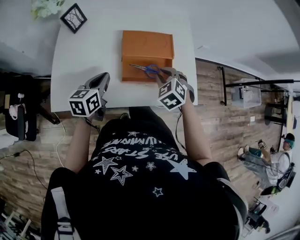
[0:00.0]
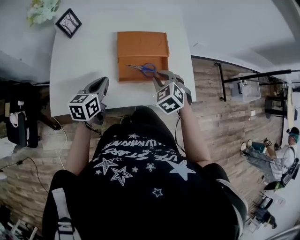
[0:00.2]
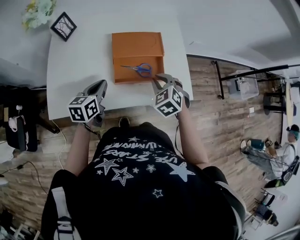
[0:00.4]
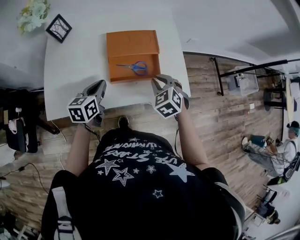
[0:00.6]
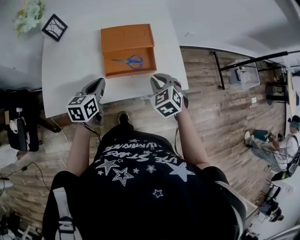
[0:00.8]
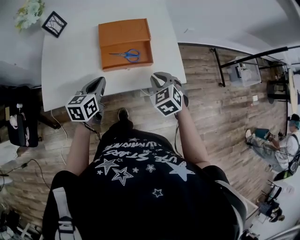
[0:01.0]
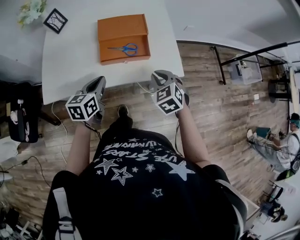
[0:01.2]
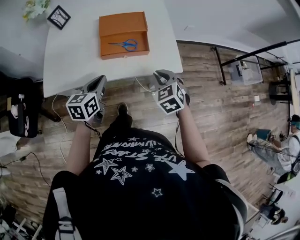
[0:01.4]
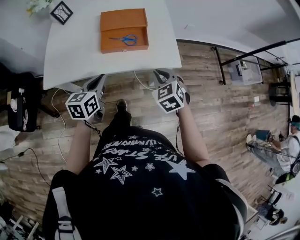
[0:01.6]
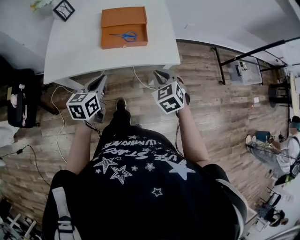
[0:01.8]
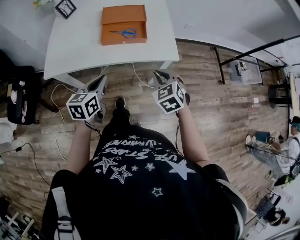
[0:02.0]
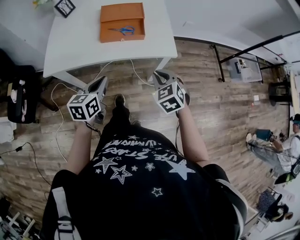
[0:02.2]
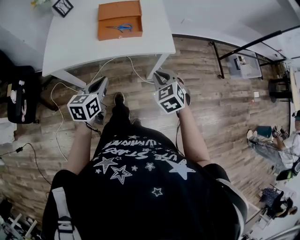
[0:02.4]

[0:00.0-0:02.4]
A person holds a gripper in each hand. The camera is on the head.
0:00.0 to 0:01.2: The right gripper shifts some 20 cm backward and to the right. The left gripper is displaced to the right and backward by some 15 cm.
0:01.2 to 0:02.4: The grippers both shift backward by roughly 20 cm.

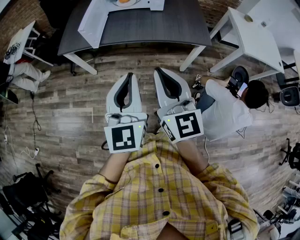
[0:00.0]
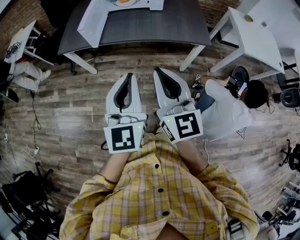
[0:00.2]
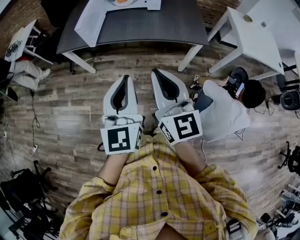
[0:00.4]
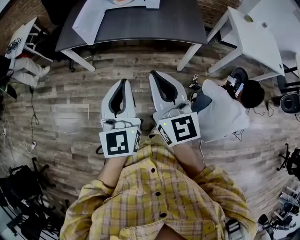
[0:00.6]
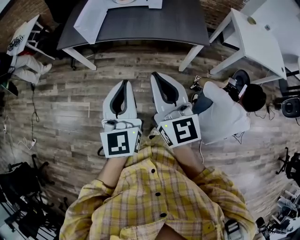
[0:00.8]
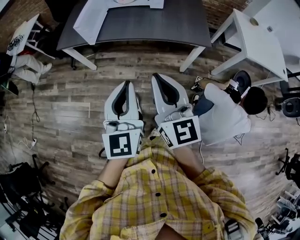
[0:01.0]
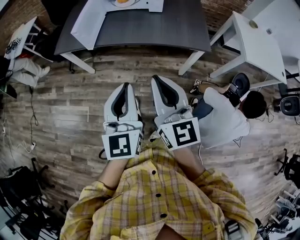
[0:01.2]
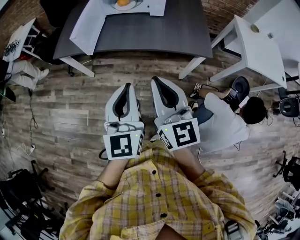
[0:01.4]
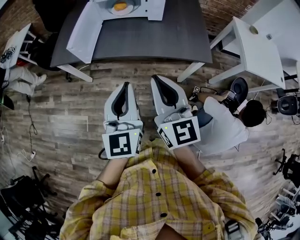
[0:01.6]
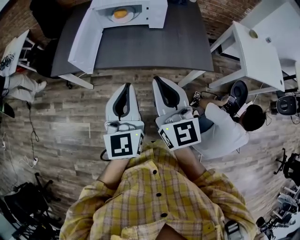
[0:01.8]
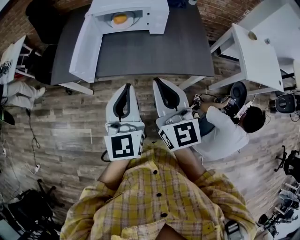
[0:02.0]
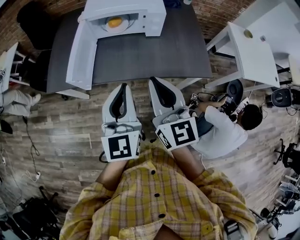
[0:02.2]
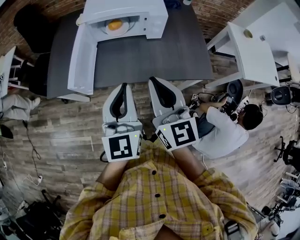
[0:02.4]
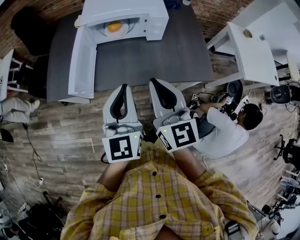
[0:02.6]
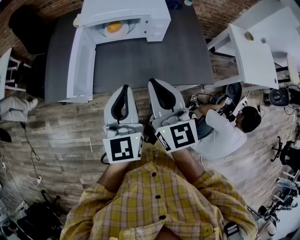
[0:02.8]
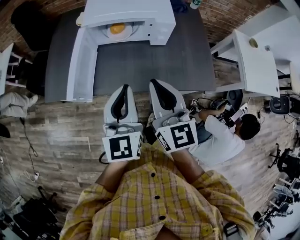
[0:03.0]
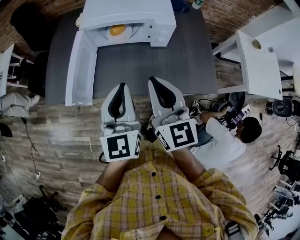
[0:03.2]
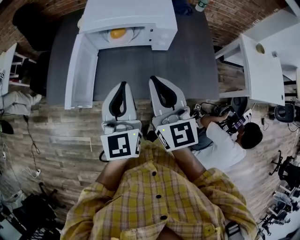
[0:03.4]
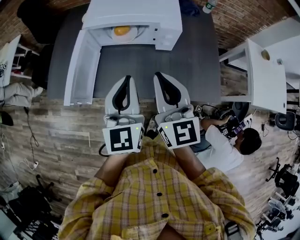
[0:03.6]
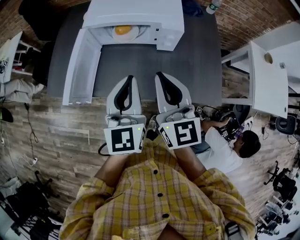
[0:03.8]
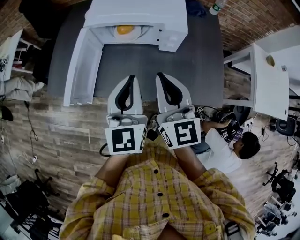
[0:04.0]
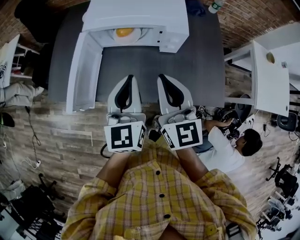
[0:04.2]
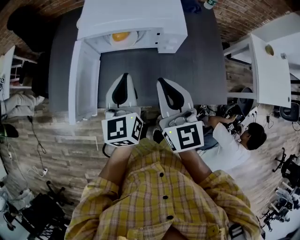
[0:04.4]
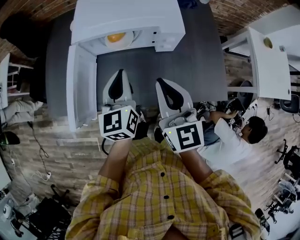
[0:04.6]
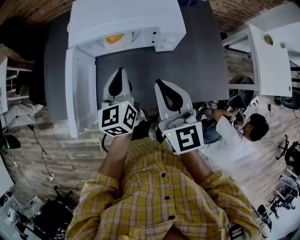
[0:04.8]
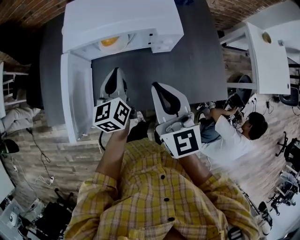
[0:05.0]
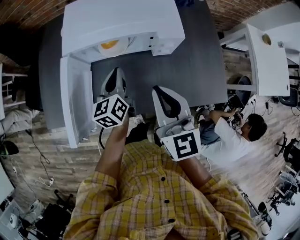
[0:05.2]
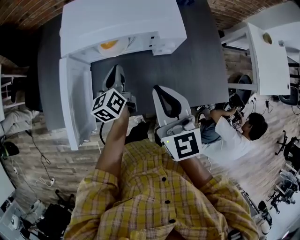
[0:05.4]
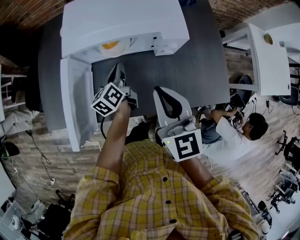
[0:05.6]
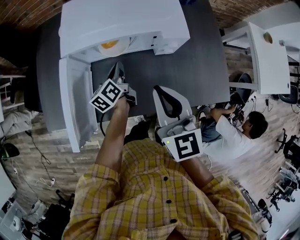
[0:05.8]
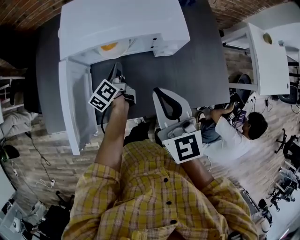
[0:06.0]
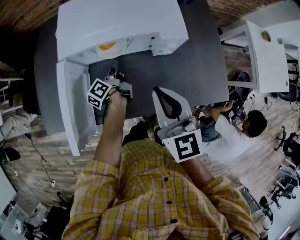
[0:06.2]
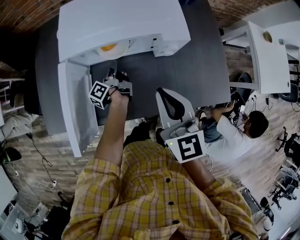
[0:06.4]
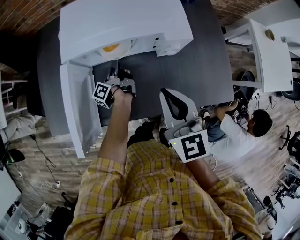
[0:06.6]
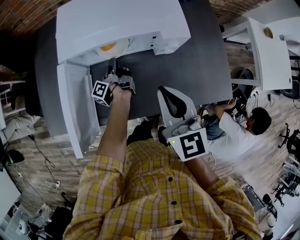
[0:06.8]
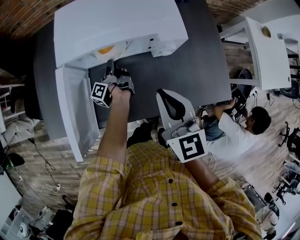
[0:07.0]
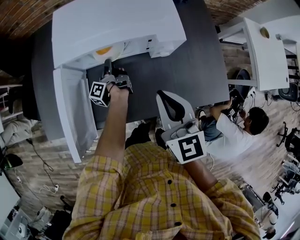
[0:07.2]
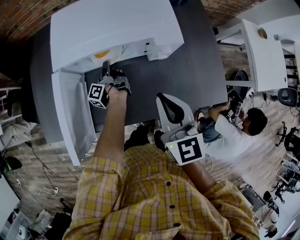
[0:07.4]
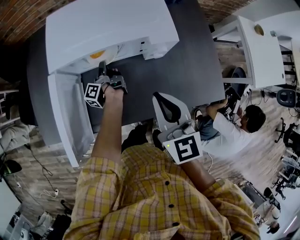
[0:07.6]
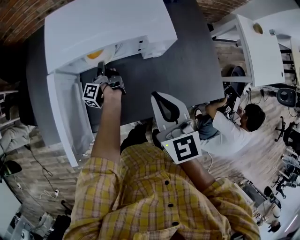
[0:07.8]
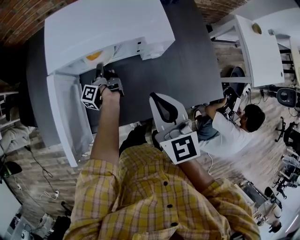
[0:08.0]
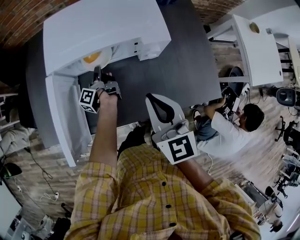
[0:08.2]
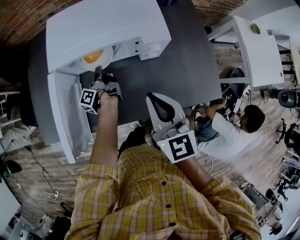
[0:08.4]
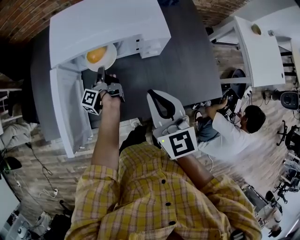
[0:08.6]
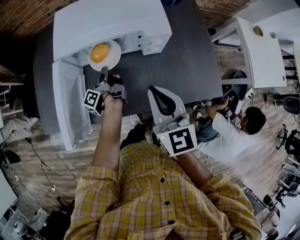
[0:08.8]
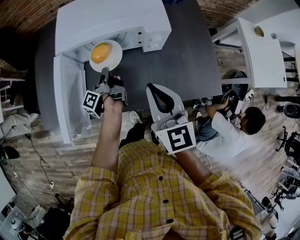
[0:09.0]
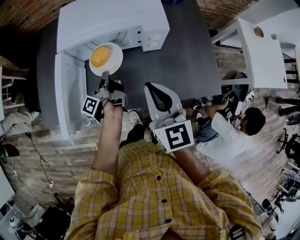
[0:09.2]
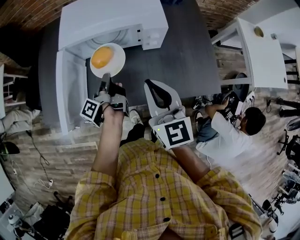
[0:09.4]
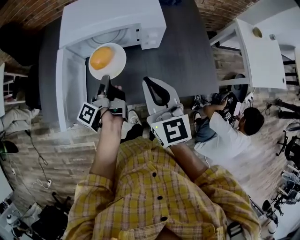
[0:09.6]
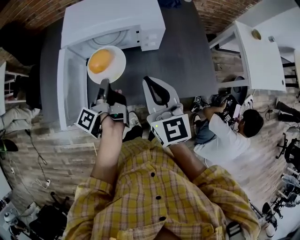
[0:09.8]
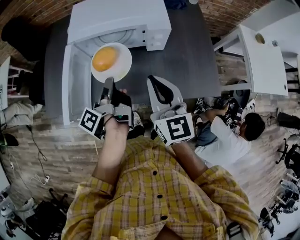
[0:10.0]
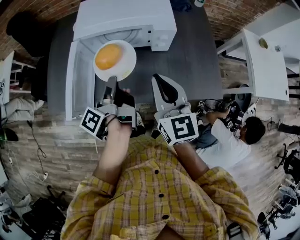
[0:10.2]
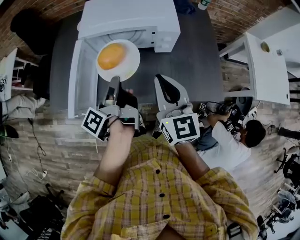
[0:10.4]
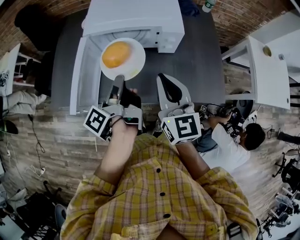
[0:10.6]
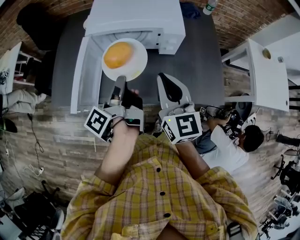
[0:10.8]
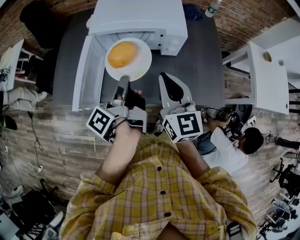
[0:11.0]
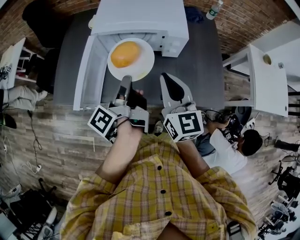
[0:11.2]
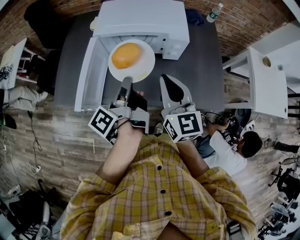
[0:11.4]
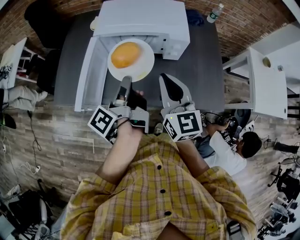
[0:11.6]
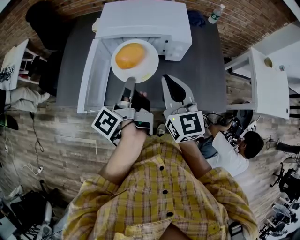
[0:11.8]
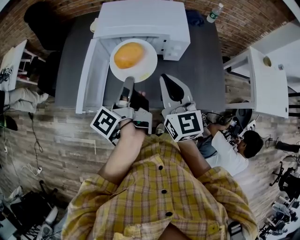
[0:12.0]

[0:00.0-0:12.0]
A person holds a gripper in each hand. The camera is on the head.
0:00.0 to 0:01.6: The right gripper travels forward and to the right by some 15 cm. Meanwhile the left gripper shifts roughly 10 cm forward.
0:01.6 to 0:03.0: The grippers both shift forward by some 25 cm.
0:03.0 to 0:04.4: The two grippers go approximately 15 cm forward.
0:04.4 to 0:06.0: The right gripper moves forward, approximately 5 cm, while the left gripper travels downward and forward by roughly 25 cm, and rolls counterclockwise, seen from behind, by approximately 40 degrees.
0:06.0 to 0:07.6: The left gripper heads downward and forward, covering some 10 cm, and rotates roughly 40 degrees.
0:07.6 to 0:09.0: The left gripper is displaced backward and upward by roughly 15 cm.
0:09.0 to 0:10.4: The right gripper changes place by approximately 5 cm; the left gripper heads upward and backward, covering about 25 cm.
0:10.4 to 0:12.0: The grippers stay close to where they were, moving slightly.

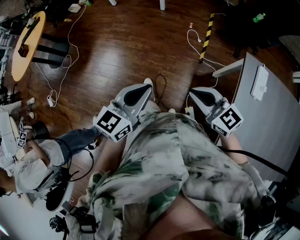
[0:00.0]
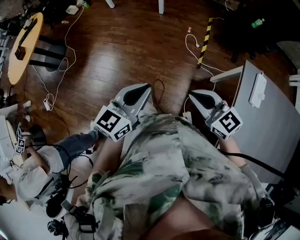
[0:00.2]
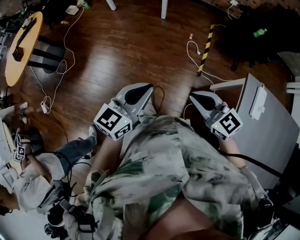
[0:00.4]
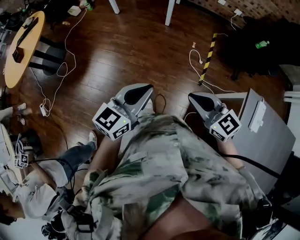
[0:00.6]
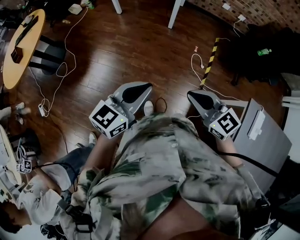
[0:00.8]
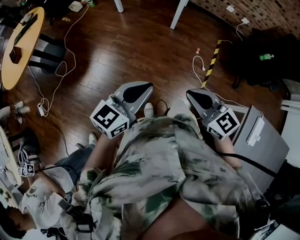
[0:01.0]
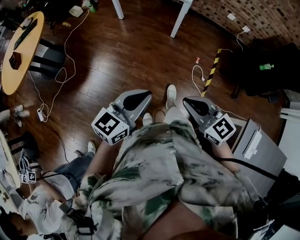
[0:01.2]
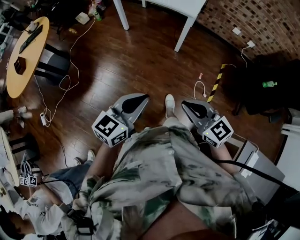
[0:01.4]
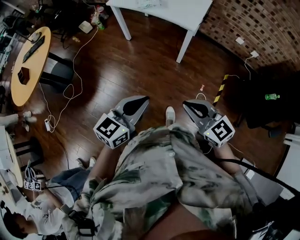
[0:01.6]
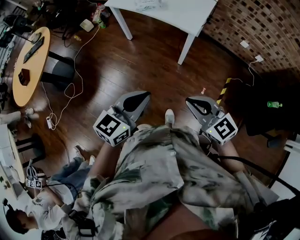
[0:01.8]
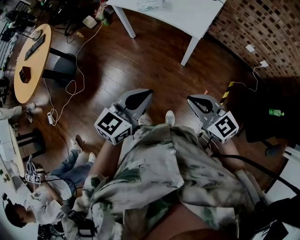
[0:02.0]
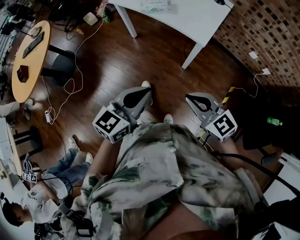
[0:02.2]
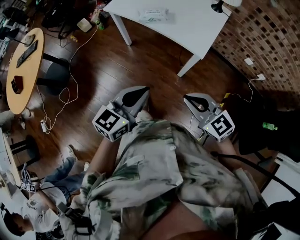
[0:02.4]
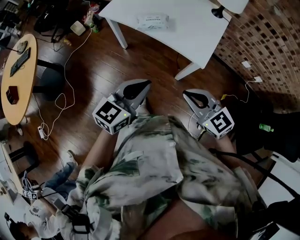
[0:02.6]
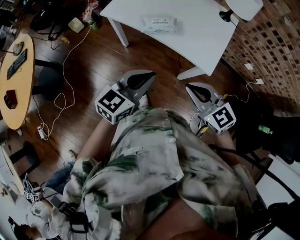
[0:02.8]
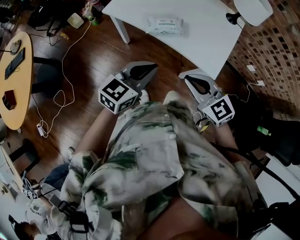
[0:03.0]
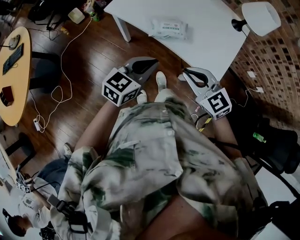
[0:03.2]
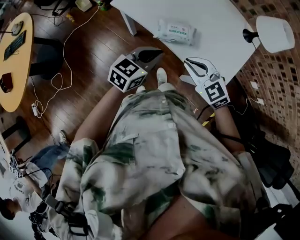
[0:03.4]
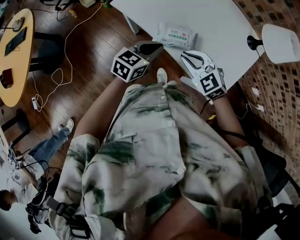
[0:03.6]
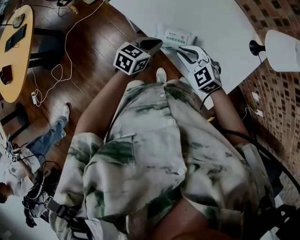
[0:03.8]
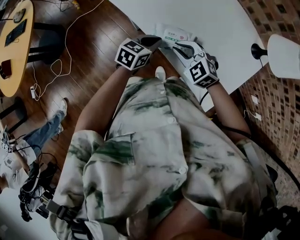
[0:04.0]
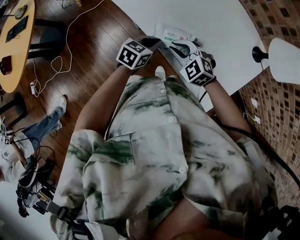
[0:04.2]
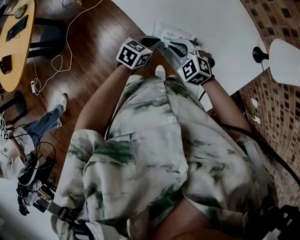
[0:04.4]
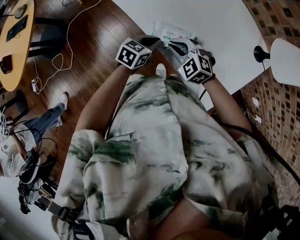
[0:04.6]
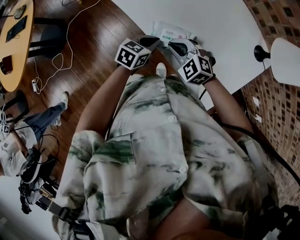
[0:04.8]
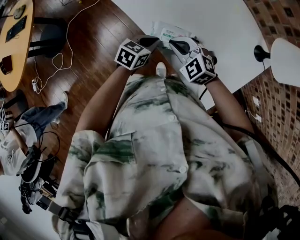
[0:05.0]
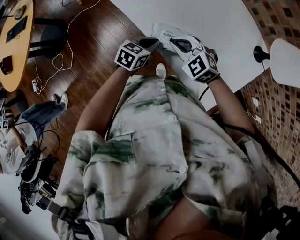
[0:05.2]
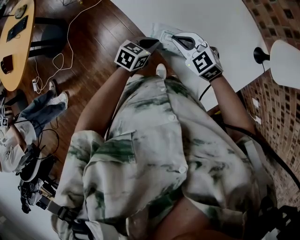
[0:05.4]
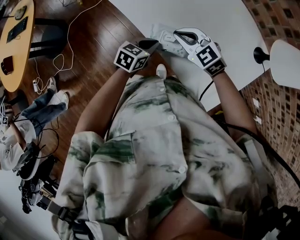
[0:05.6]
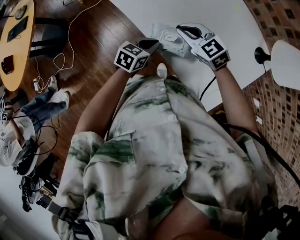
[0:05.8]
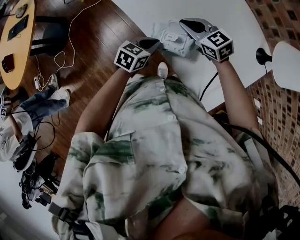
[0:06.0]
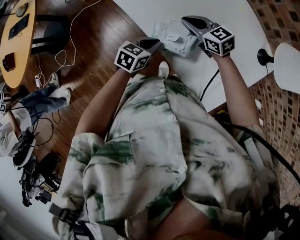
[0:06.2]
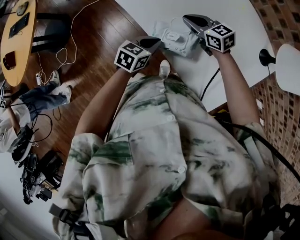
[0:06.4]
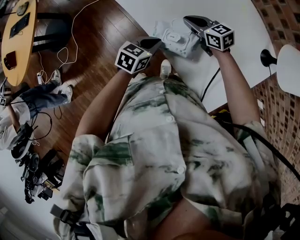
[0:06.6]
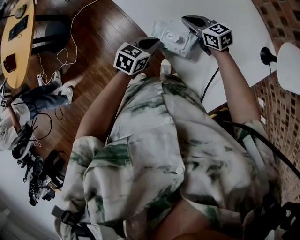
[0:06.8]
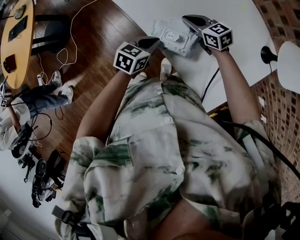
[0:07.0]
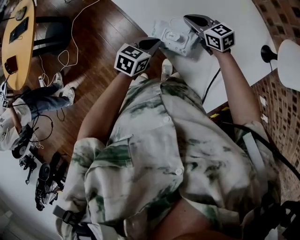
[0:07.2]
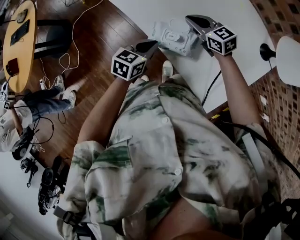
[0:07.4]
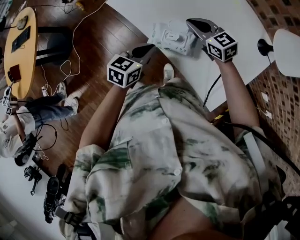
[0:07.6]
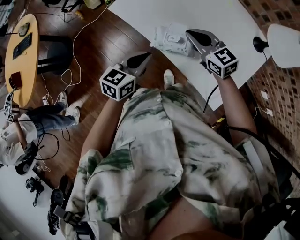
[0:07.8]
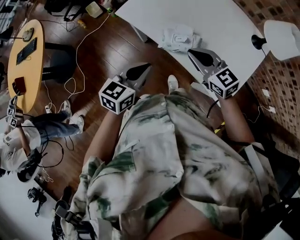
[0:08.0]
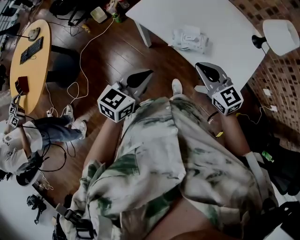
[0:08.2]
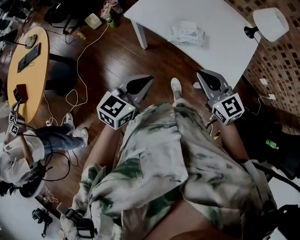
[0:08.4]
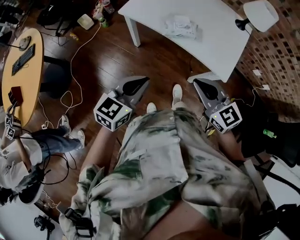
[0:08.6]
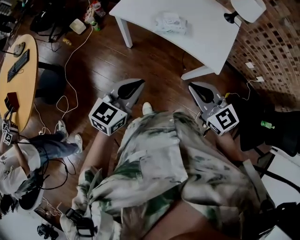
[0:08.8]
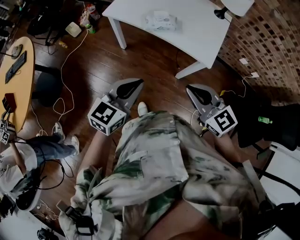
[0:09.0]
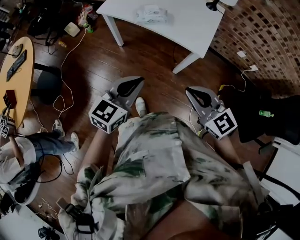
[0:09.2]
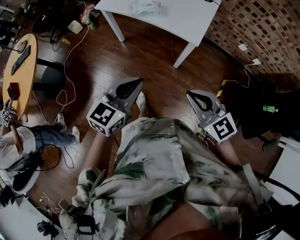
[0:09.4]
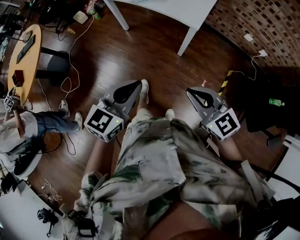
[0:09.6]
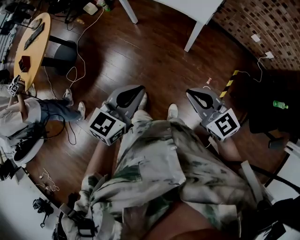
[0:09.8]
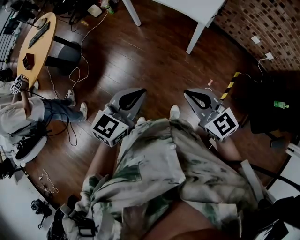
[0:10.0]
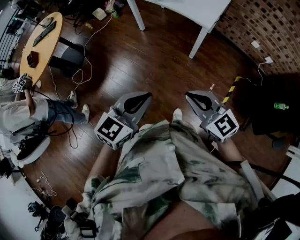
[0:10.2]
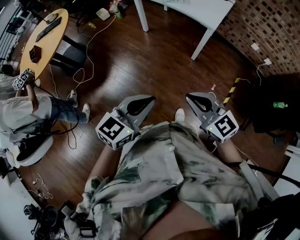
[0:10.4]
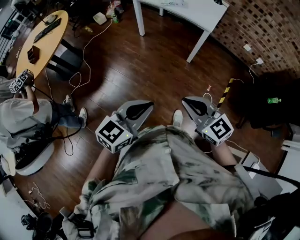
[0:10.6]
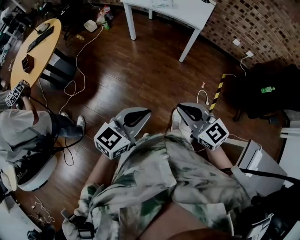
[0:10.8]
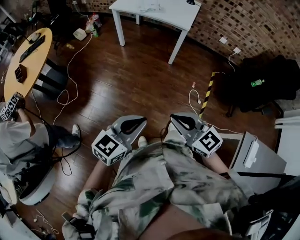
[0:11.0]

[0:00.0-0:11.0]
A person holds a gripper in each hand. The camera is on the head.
0:00.0 to 0:01.6: The two grippers travel together, forward, roughly 50 cm.
0:01.6 to 0:03.2: The pair of grippers is taken forward, approximately 50 cm.
0:03.2 to 0:04.8: The right gripper travels forward and downward by approximately 25 cm, and changes its angle by about 30 degrees. The left gripper is displaced downward and forward by about 25 cm, and swivels about 30 degrees.
0:04.8 to 0:06.2: The right gripper heads forward, covering some 10 cm, and swivels roughly 40 degrees.
0:06.2 to 0:07.8: The right gripper moves upward and backward, about 10 cm. Meanwhile the left gripper heads upward, covering about 10 cm.
0:07.8 to 0:09.4: The pair of grippers is taken backward, about 50 cm. The left gripper turns by approximately 20 degrees.
0:09.4 to 0:11.0: The pair of grippers is taken backward and to the left, approximately 40 cm.
